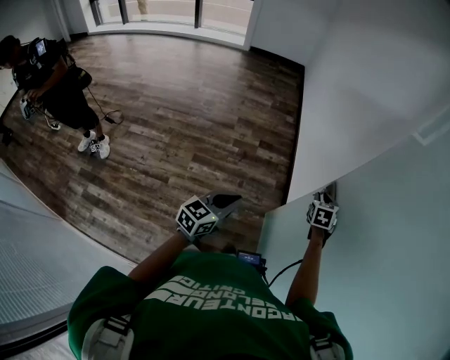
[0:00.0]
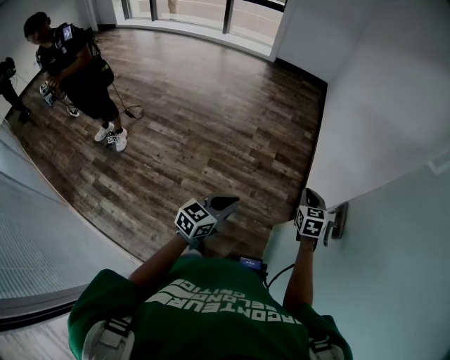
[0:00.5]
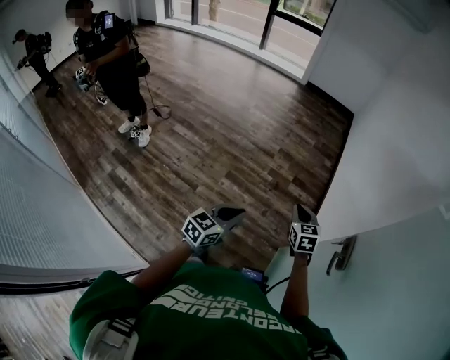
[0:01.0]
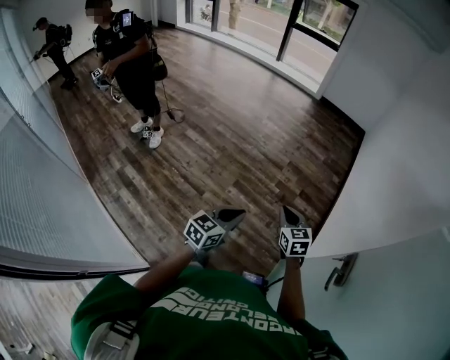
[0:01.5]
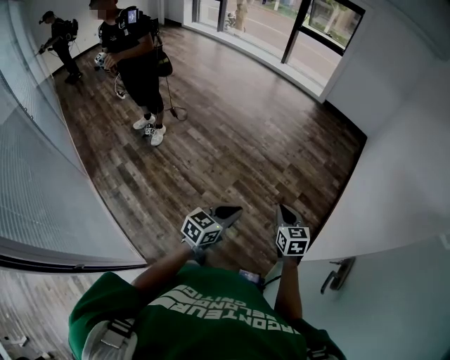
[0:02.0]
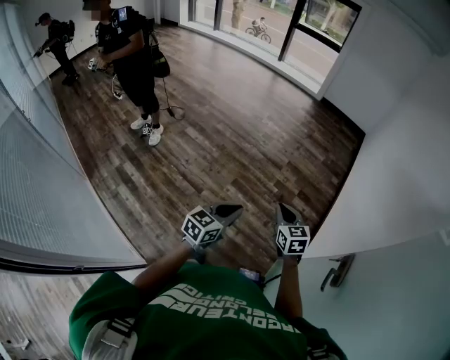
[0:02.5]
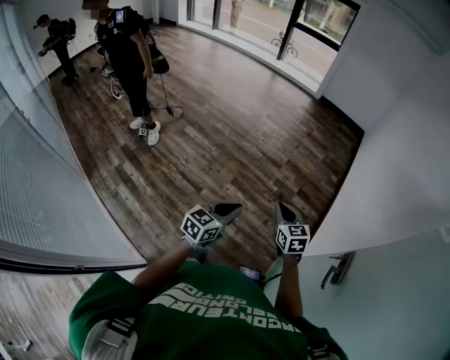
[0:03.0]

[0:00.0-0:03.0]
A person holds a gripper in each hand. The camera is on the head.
0:00.0 to 0:01.5: The right gripper moves approximately 35 cm, changes its angle by approximately 50 degrees, and closes up; the left gripper ends up approximately 10 cm from where it was, and changes its angle by some 30 degrees.
0:01.5 to 0:03.0: Both grippers stay about where they are.

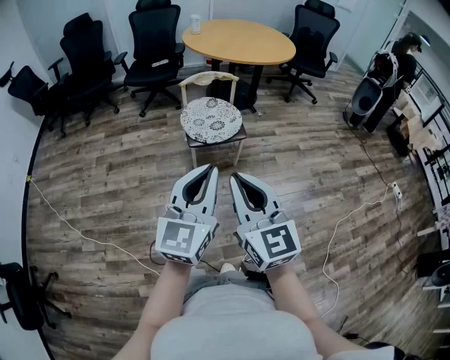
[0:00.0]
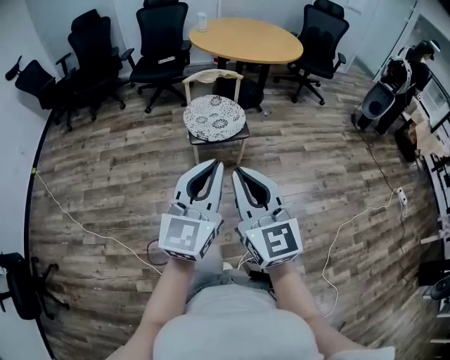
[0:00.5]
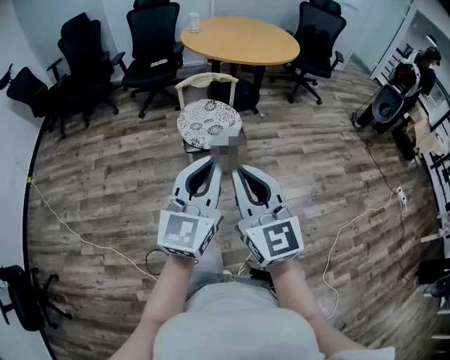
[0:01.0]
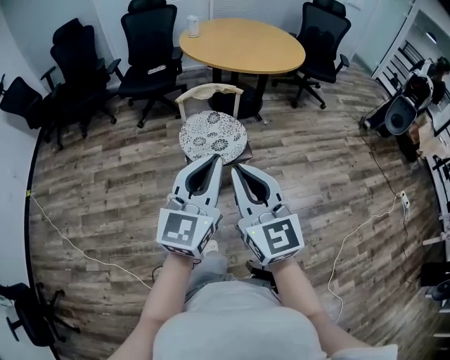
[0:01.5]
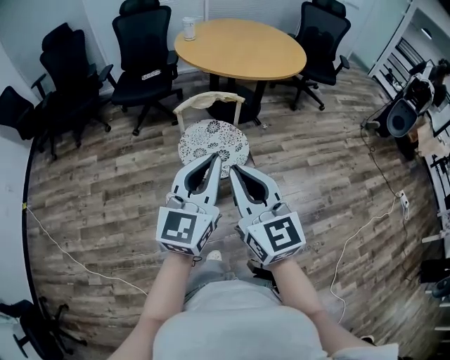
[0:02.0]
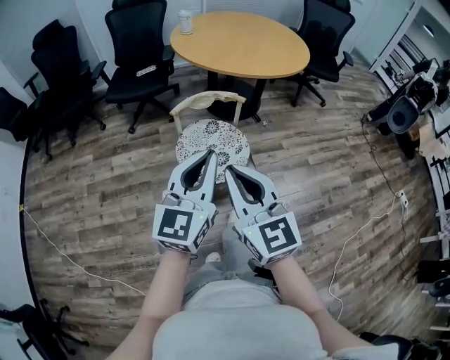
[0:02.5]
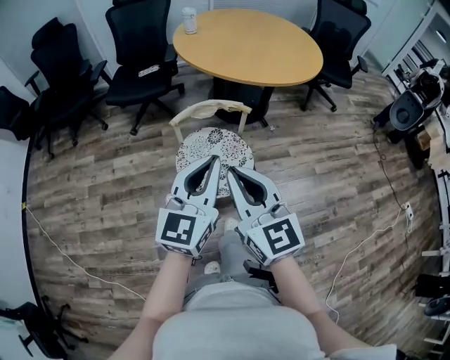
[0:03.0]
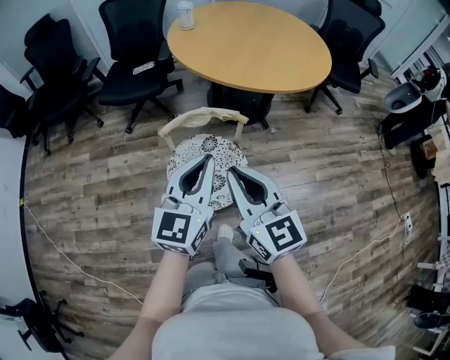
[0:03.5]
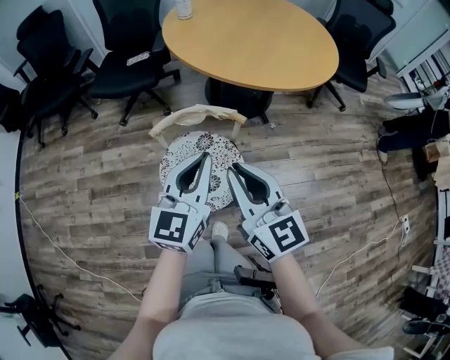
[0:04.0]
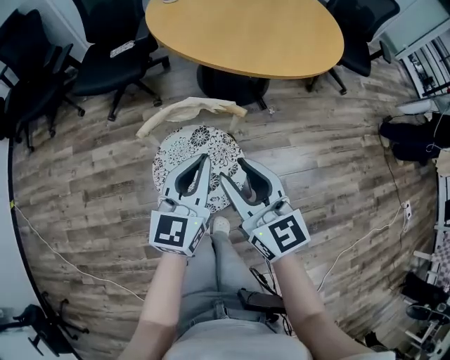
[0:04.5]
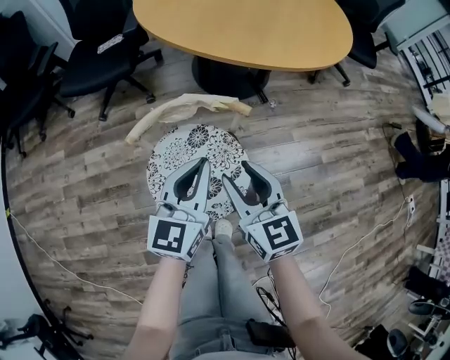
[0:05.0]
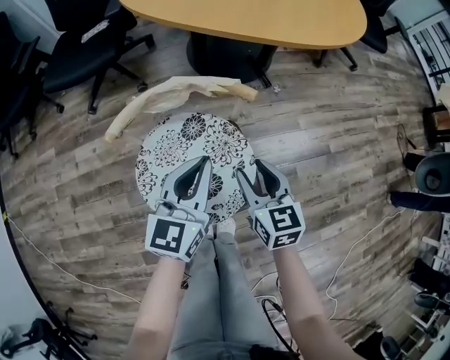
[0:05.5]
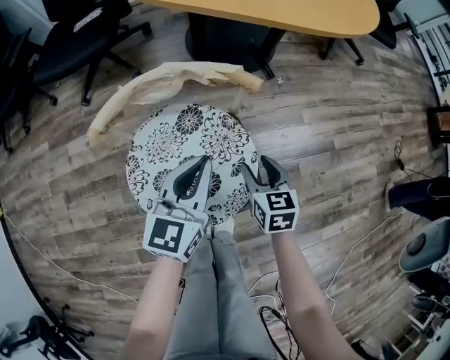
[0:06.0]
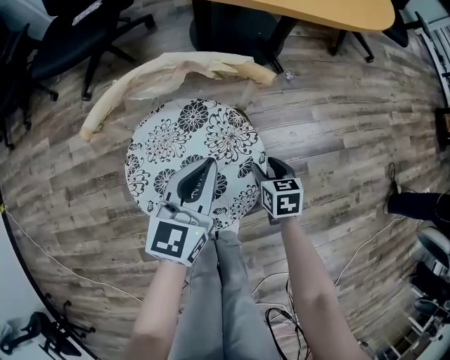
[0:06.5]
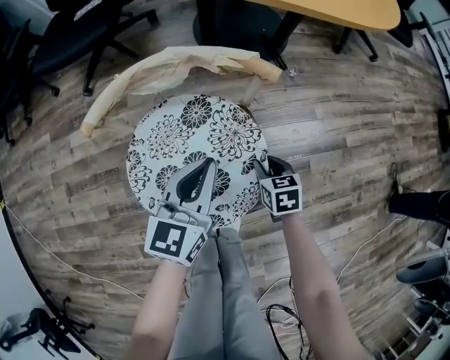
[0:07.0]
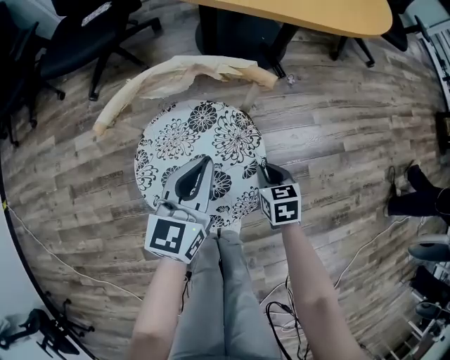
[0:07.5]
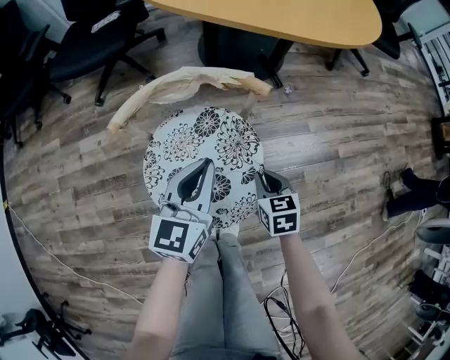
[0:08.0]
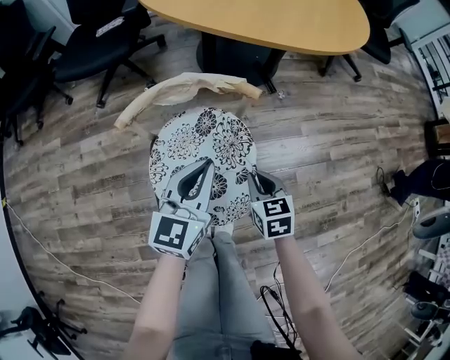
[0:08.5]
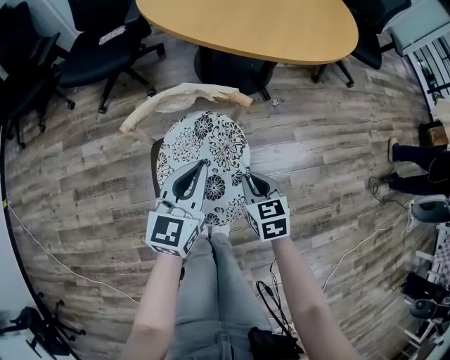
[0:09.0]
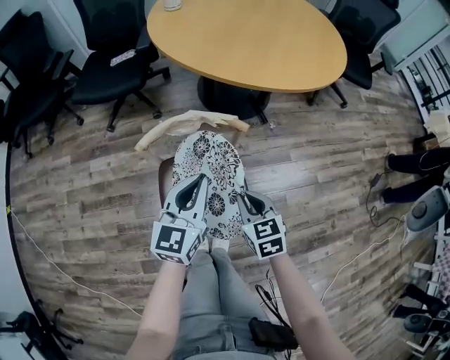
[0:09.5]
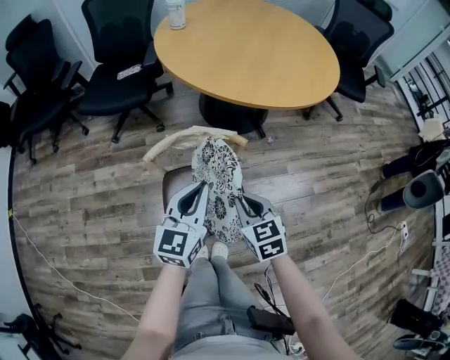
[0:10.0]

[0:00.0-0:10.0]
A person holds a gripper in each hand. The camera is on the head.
0:00.0 to 0:02.0: The grippers both shift forward by approximately 30 cm.
0:02.0 to 0:04.0: The grippers both shift forward by some 30 cm.
0:04.0 to 0:06.0: Both grippers move downward, roughly 40 cm. The right gripper tips its fingers downward by about 40 degrees, and opens.
0:06.0 to 0:08.0: The right gripper moves approximately 10 cm downward and comes back, and closes its fingers.
0:08.0 to 0:10.0: The two grippers go some 20 cm upward.

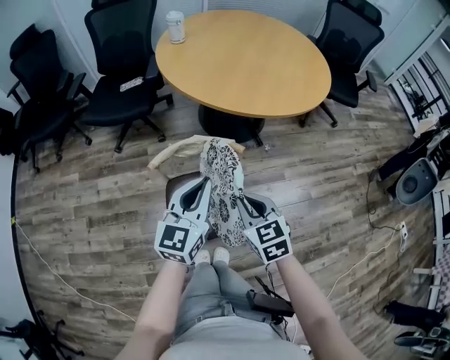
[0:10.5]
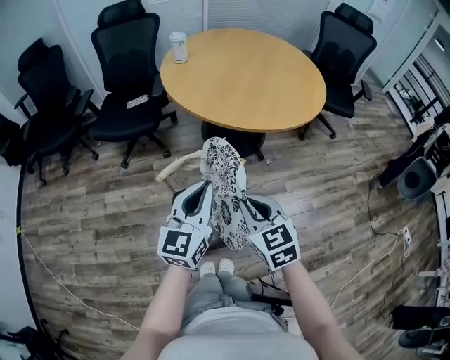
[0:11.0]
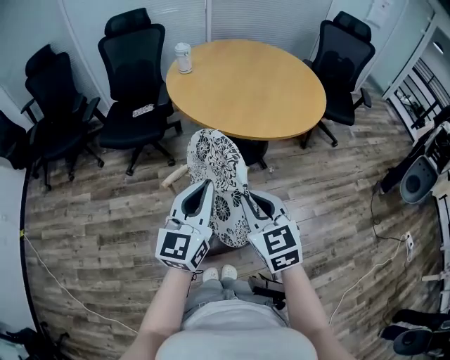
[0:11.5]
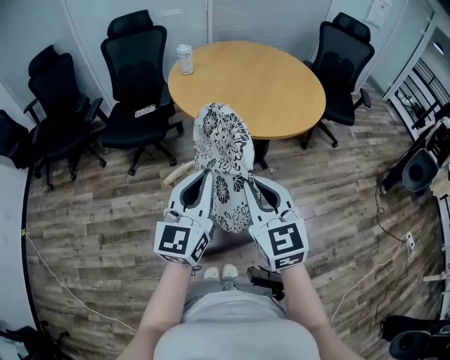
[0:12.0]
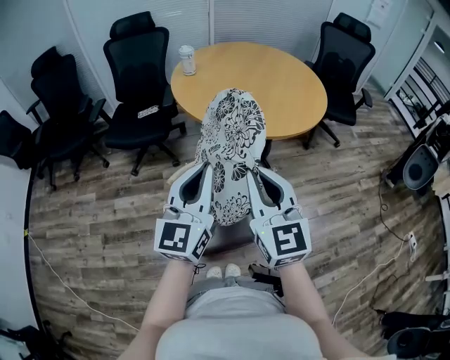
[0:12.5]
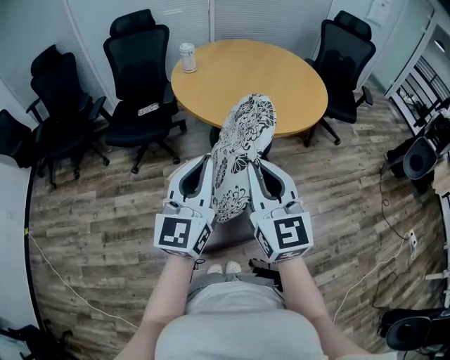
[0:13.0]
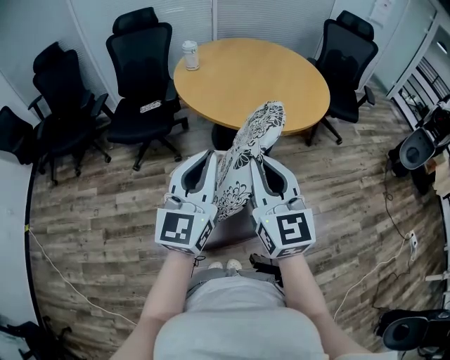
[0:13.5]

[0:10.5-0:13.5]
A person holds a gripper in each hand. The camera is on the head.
0:10.5 to 0:12.0: Both grippers travel together upward, approximately 15 cm. The right gripper turns by some 30 degrees.
0:12.0 to 0:13.5: The grippers stay close to where they were, moving slightly.

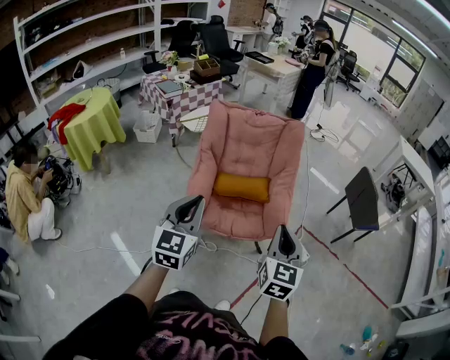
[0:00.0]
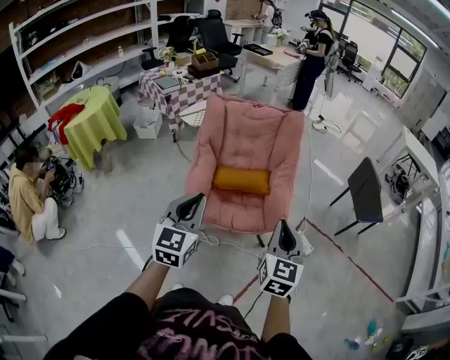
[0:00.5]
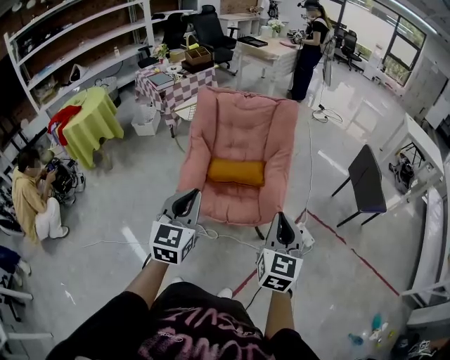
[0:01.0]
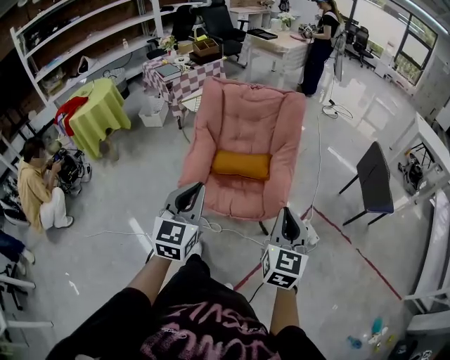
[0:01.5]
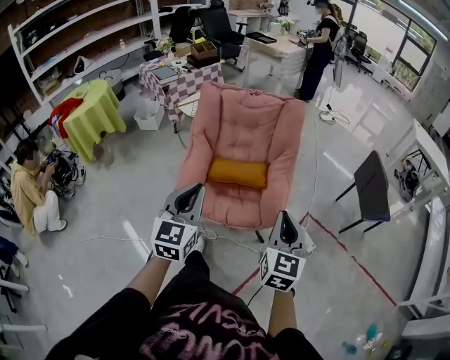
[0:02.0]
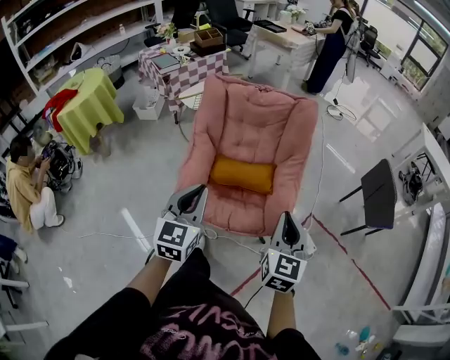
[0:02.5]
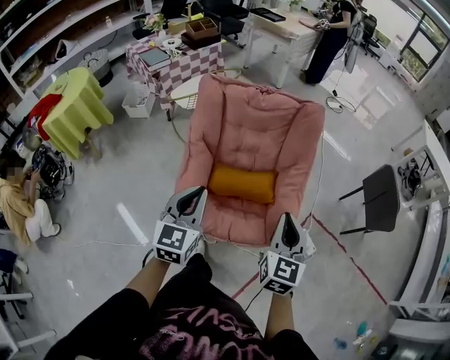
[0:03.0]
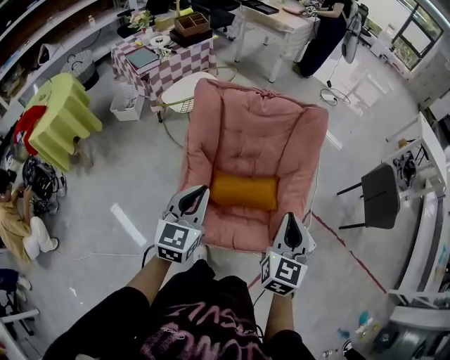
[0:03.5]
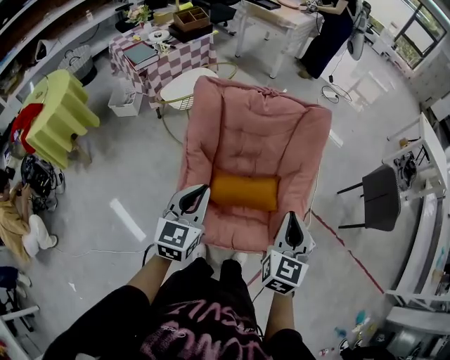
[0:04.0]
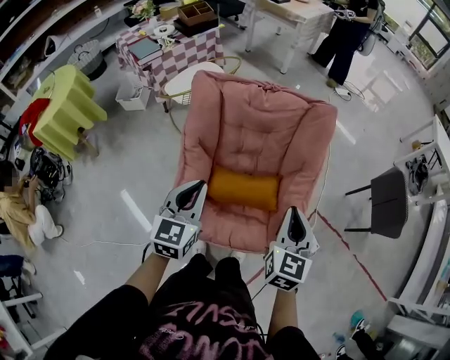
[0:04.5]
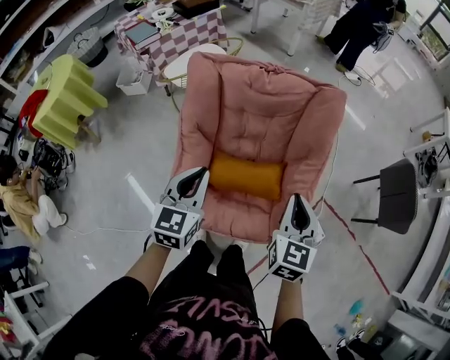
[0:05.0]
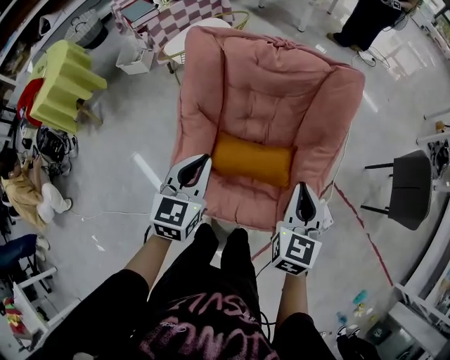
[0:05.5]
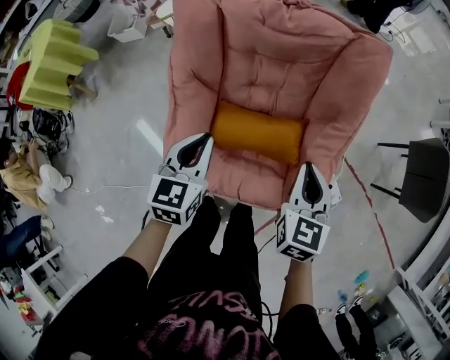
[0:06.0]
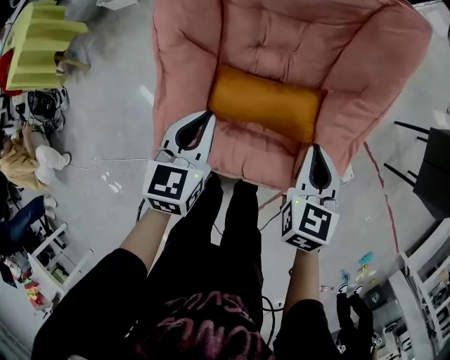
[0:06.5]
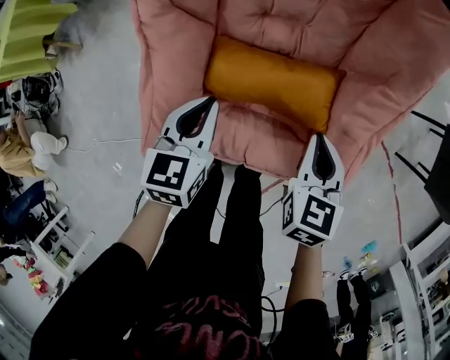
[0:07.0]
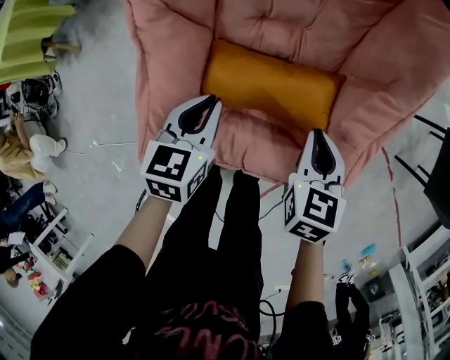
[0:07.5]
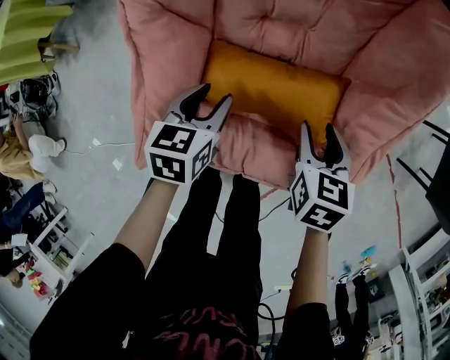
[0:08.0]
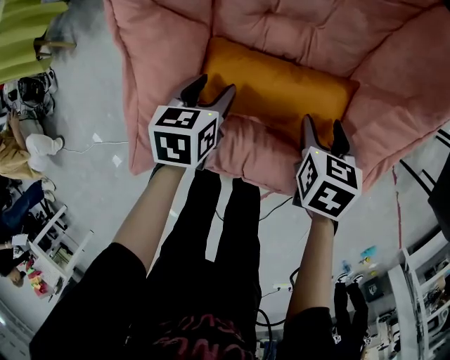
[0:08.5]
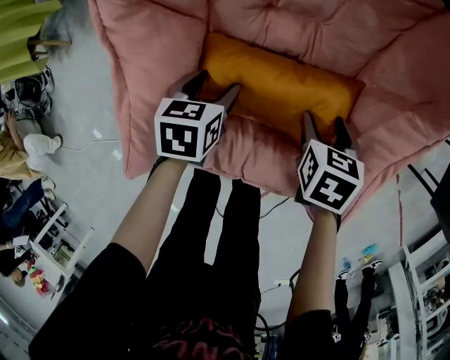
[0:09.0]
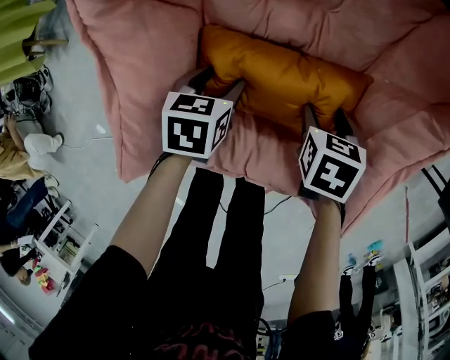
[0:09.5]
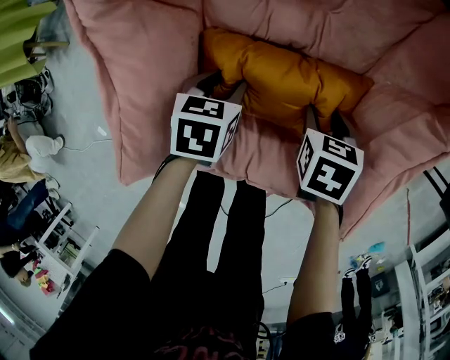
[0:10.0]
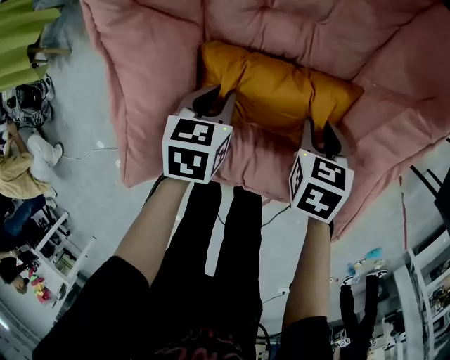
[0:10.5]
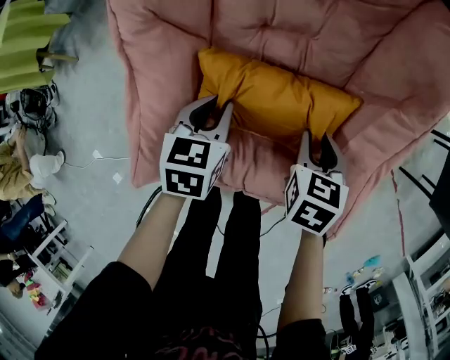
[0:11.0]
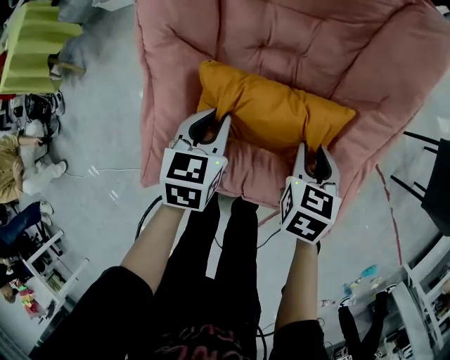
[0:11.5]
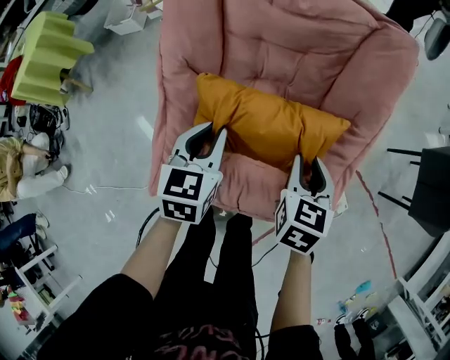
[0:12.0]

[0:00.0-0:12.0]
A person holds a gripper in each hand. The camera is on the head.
0:00.0 to 0:02.0: Both grippers move to the right and forward, roughly 10 cm.
0:02.0 to 0:04.0: The two grippers go roughly 30 cm forward and to the left.
0:04.0 to 0:06.0: Both grippers move downward and forward, roughly 20 cm.
0:06.0 to 0:08.0: Both grippers move downward, approximately 25 cm. The left gripper rotates roughly 20 degrees, and opens. Meanwhile the right gripper changes its angle by approximately 20 degrees, and opens its fingers.
0:08.0 to 0:10.0: The grippers both shift downward by some 15 cm.
0:10.0 to 0:12.0: The grippers both shift upward by some 25 cm. The left gripper rotates some 30 degrees, and closes. The right gripper swivels roughly 30 degrees.
